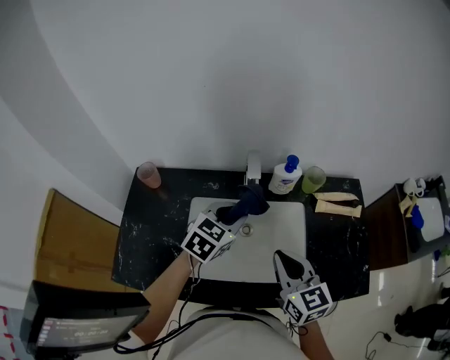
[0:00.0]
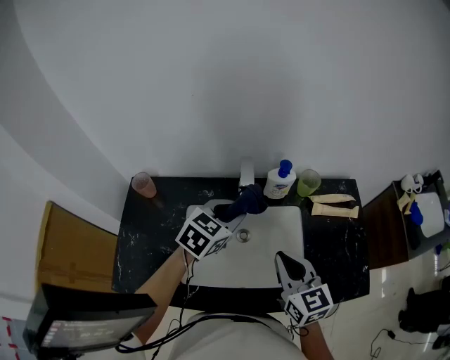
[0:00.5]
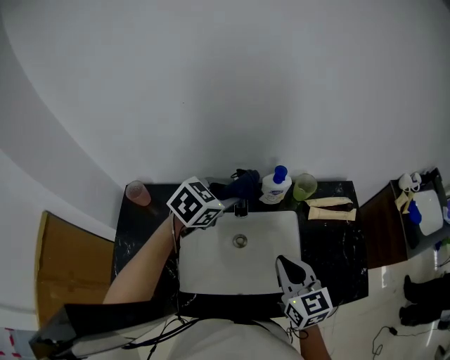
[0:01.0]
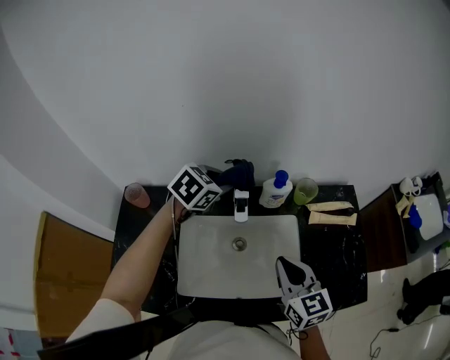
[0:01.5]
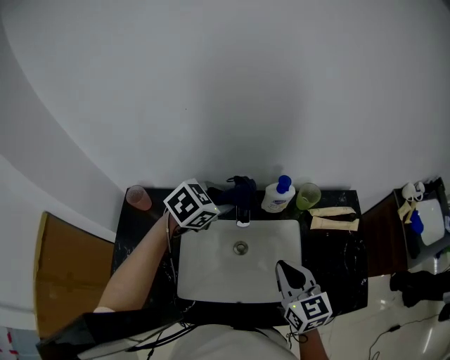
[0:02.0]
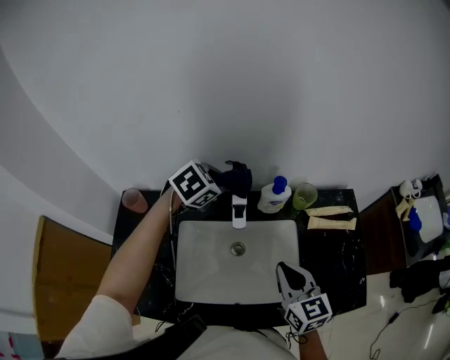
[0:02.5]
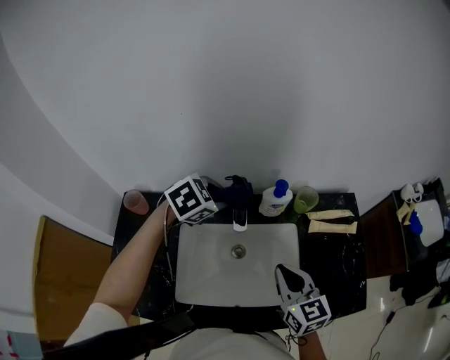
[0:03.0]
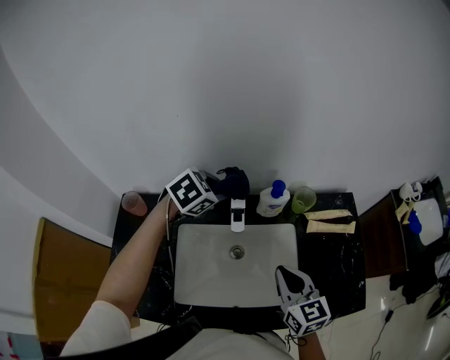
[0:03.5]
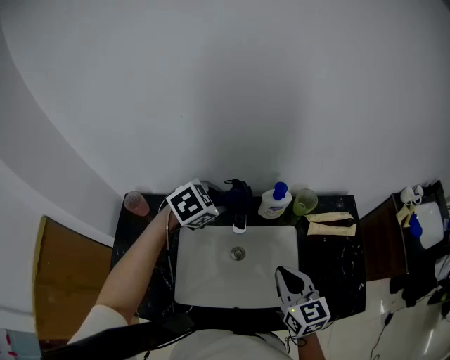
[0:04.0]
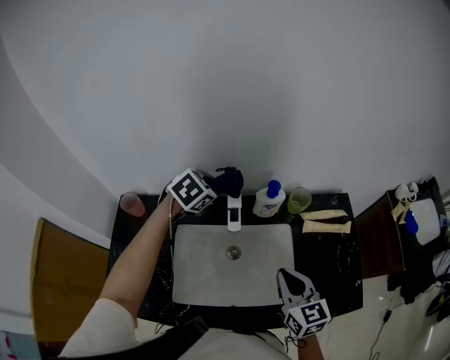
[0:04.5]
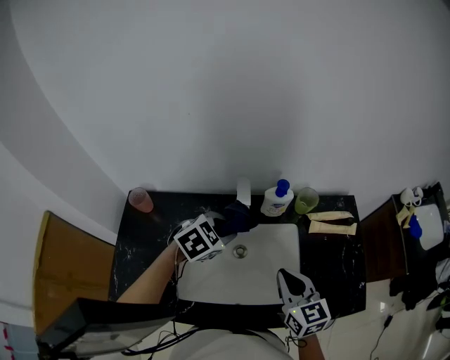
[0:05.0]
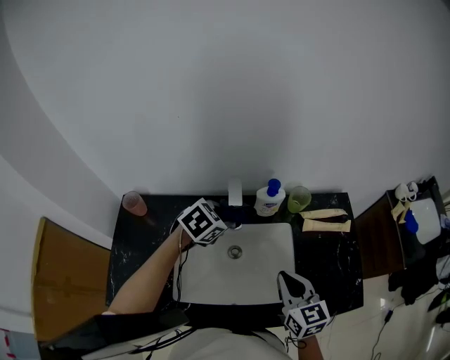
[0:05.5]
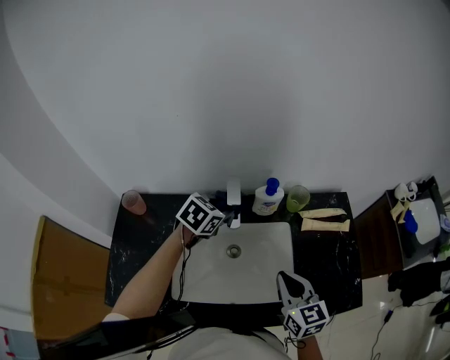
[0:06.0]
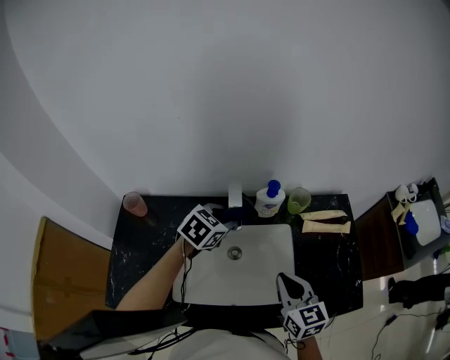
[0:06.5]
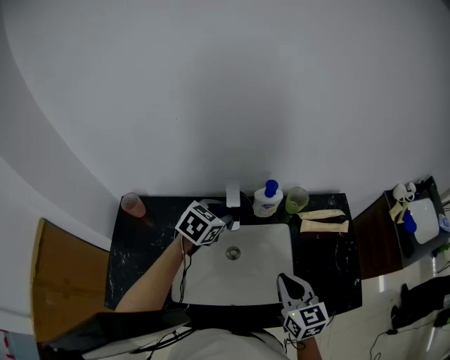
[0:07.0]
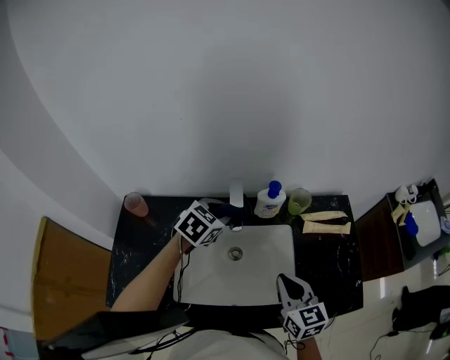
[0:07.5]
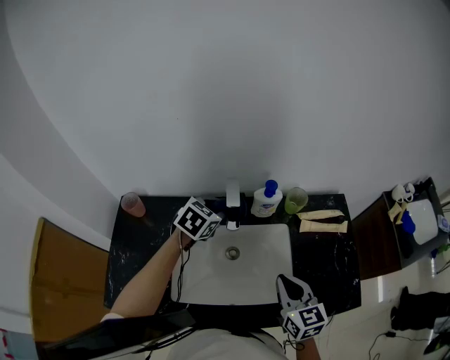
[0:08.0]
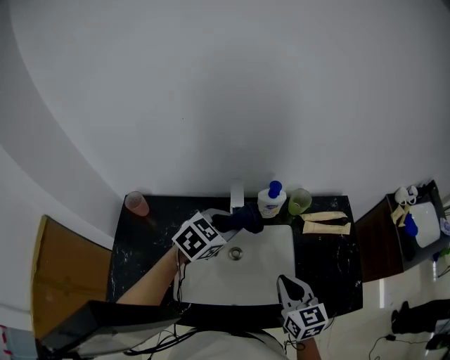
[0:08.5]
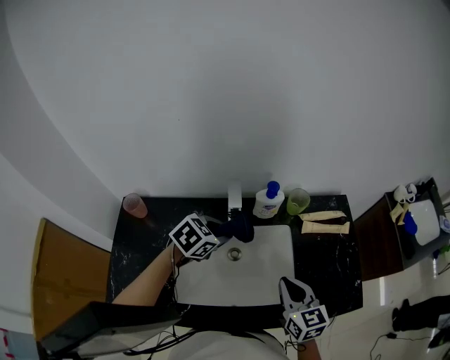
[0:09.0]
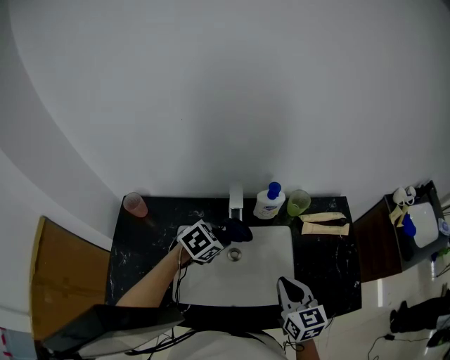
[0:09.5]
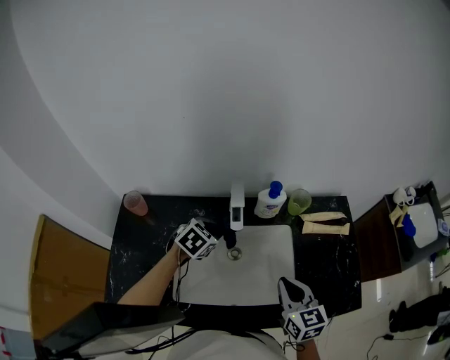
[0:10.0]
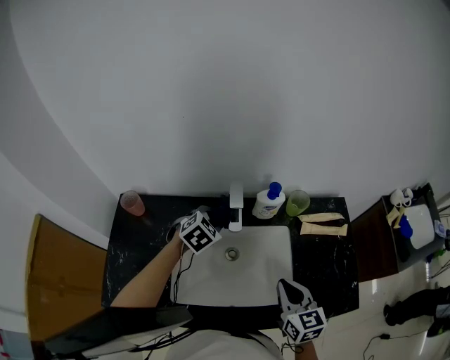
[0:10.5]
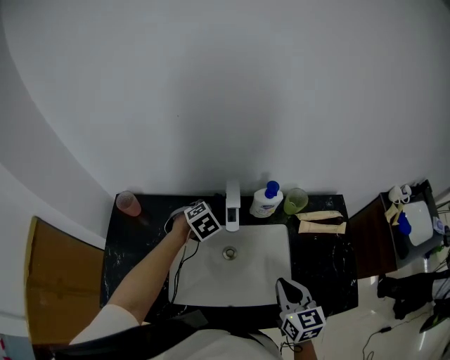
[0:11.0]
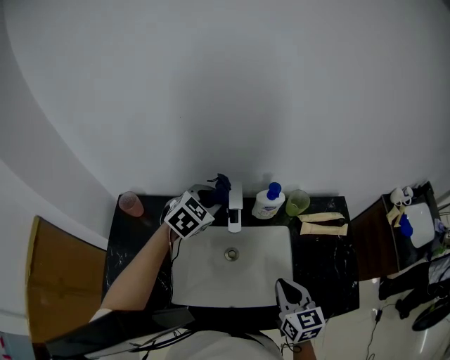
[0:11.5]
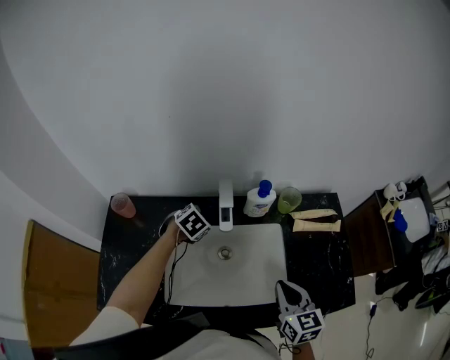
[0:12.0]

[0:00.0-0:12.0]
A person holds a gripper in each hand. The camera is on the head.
0:00.0 to 0:02.0: The left gripper is displaced forward by some 10 cm, and swivels roughly 20 degrees. Meanwhile the right gripper ends up roughly 5 cm from where it was.
0:04.0 to 0:06.0: The left gripper goes forward and backward, approximately 10 cm each way, reversing 2 times.
0:06.0 to 0:08.0: The grippers move only a little.
0:08.0 to 0:10.0: The left gripper travels downward and backward by some 10 cm.
0:10.0 to 0:12.0: The left gripper moves forward, approximately 5 cm, and goes upward and returns, about 10 cm each way.

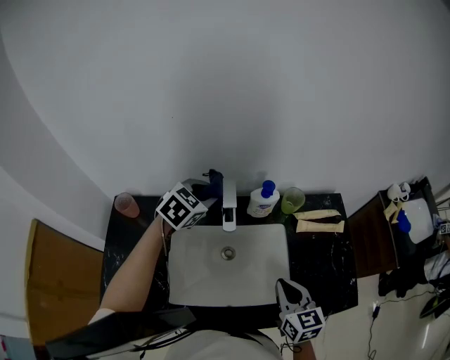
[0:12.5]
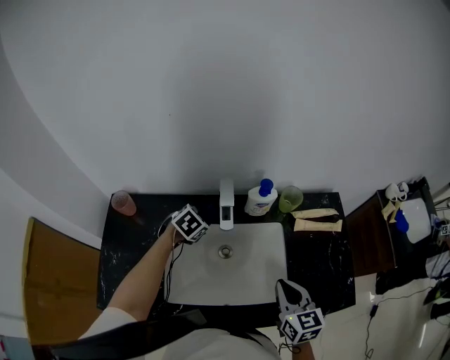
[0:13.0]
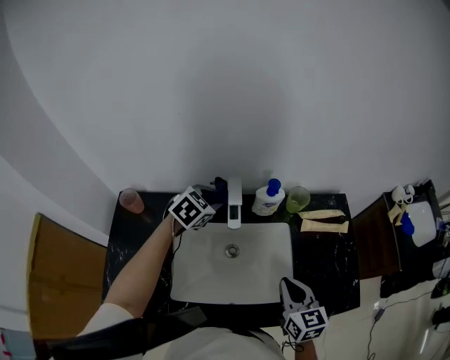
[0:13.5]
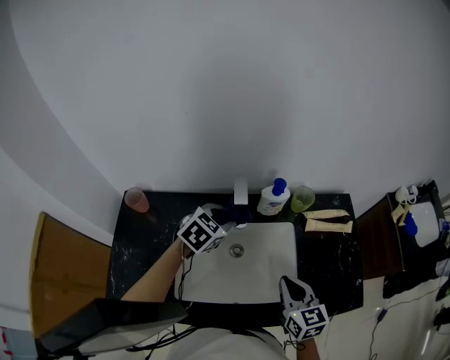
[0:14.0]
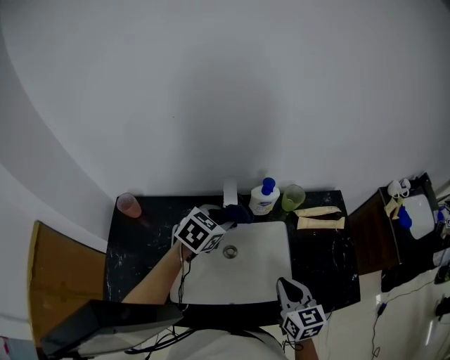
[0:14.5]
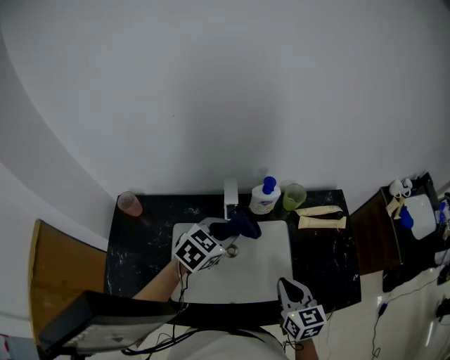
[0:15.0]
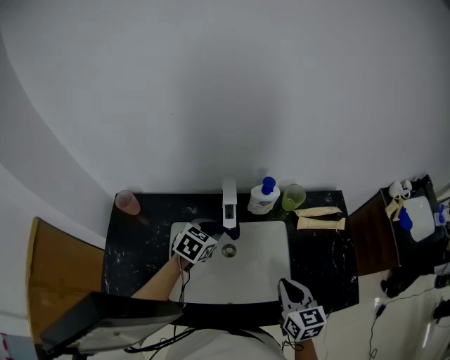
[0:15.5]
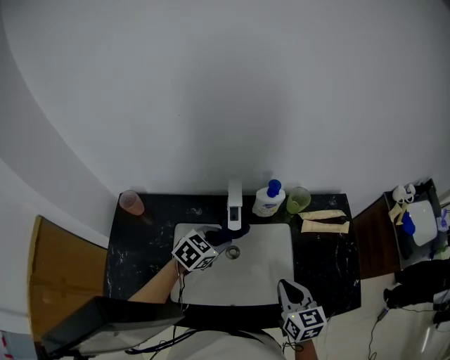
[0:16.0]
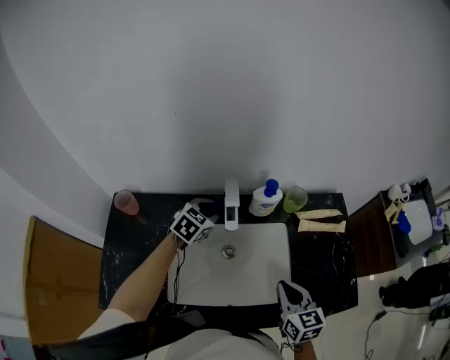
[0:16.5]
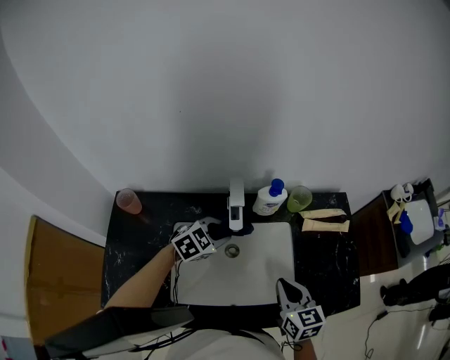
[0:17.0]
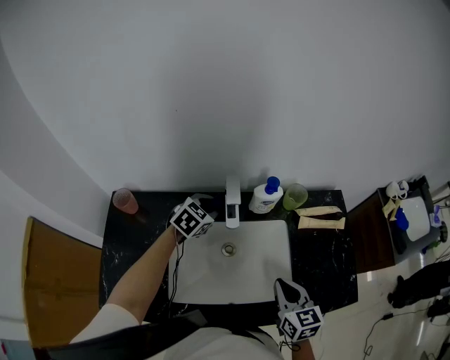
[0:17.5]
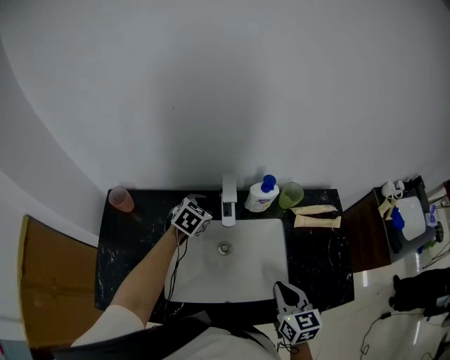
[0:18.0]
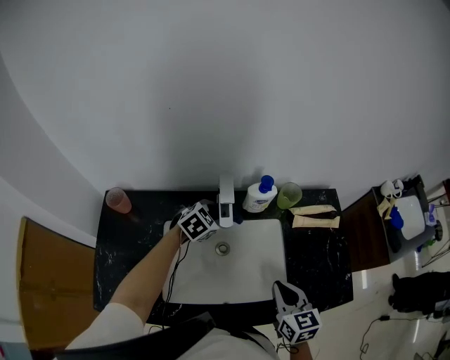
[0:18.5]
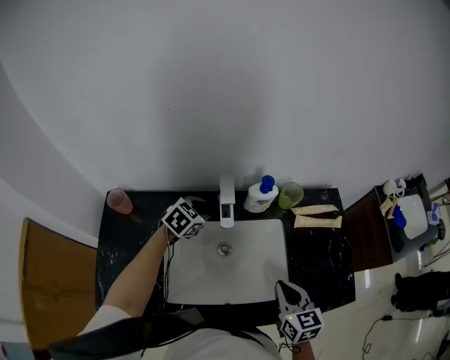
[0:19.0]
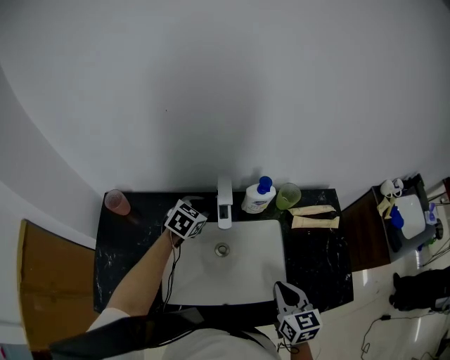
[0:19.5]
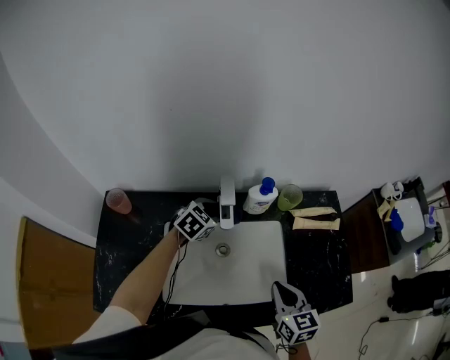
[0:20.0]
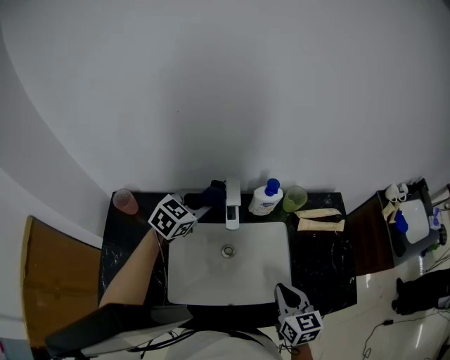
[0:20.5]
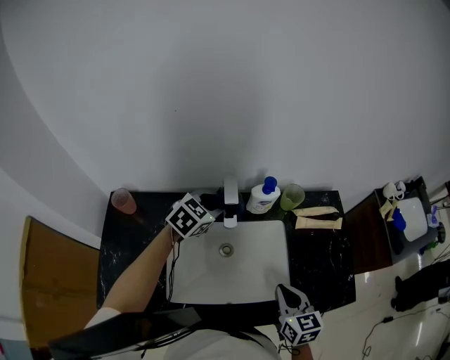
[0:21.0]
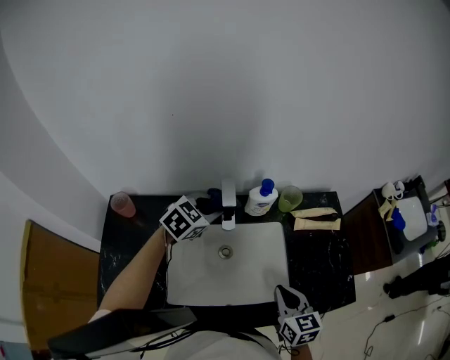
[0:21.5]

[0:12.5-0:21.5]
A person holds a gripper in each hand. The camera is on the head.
0:12.5 to 0:14.5: The left gripper is displaced backward and to the right by about 10 cm, and moves roughly 15 cm downward and comes back.
0:14.5 to 0:17.0: The left gripper swings forward and backward, approximately 10 cm each way, with 2 reversals.
0:17.0 to 0:19.5: The left gripper travels forward and to the left by some 10 cm, and turns by about 20 degrees.
0:19.5 to 0:21.5: The left gripper heads upward, covering about 10 cm.

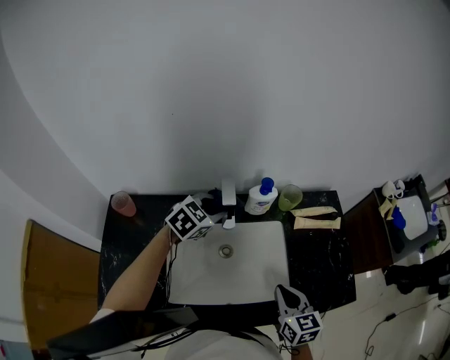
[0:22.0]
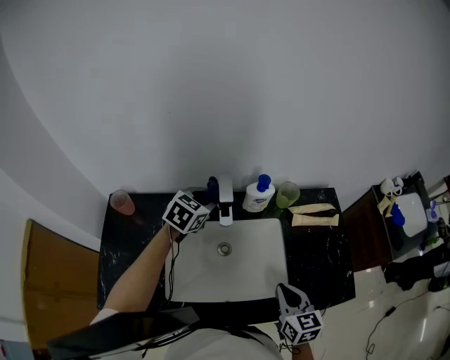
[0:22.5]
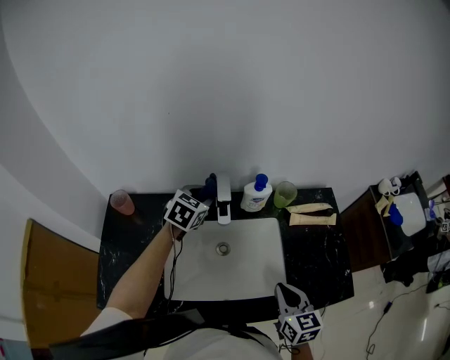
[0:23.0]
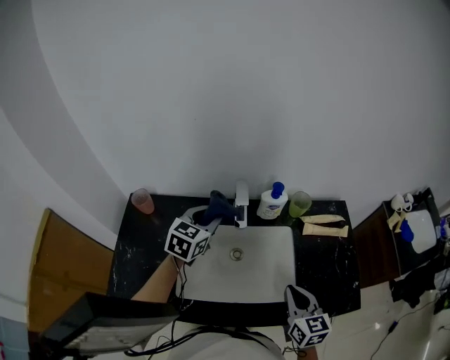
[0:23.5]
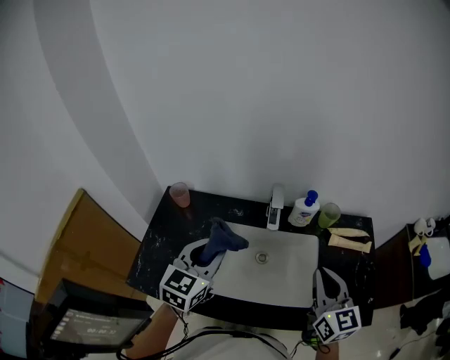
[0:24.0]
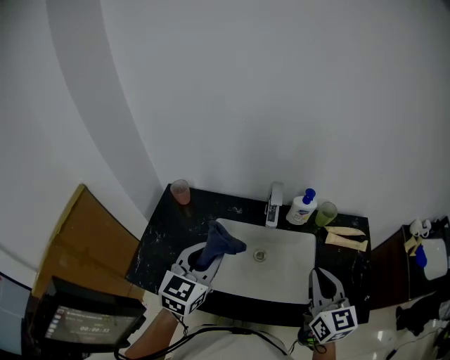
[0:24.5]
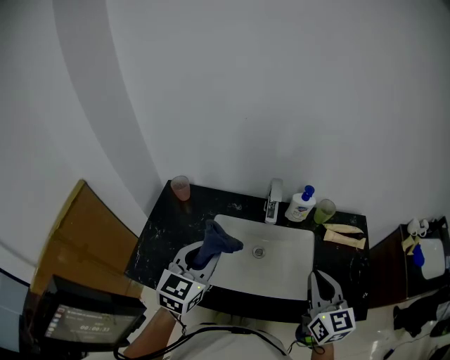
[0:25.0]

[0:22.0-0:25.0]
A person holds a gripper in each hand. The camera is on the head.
0:22.0 to 0:23.5: The left gripper moves to the left, some 5 cm, and rotates about 30 degrees.
0:23.5 to 0:25.0: The left gripper is displaced backward by approximately 20 cm. The right gripper heads upward, covering some 10 cm.

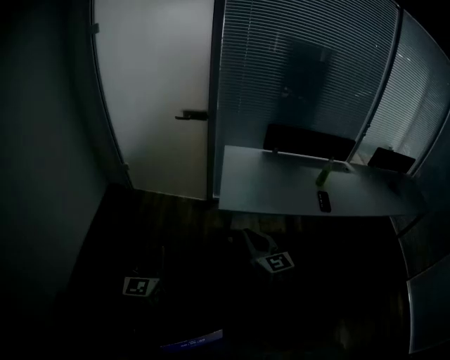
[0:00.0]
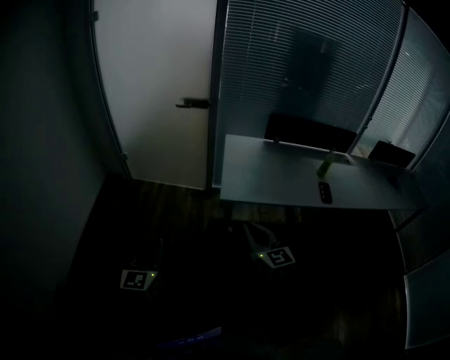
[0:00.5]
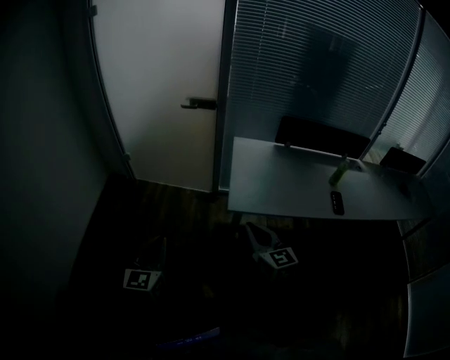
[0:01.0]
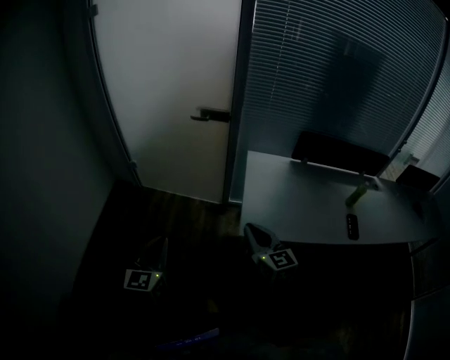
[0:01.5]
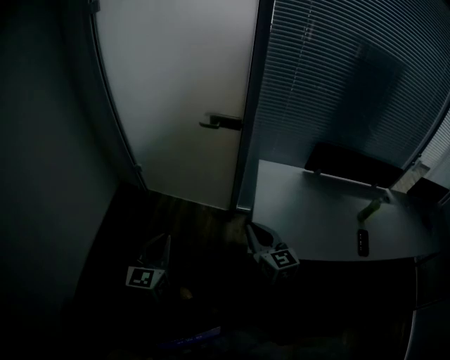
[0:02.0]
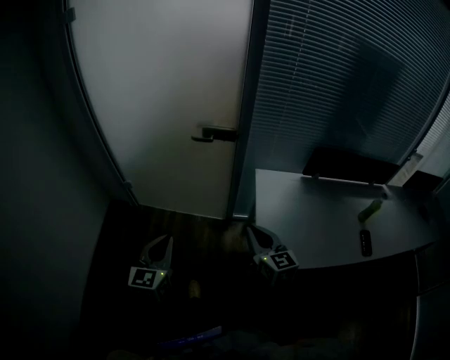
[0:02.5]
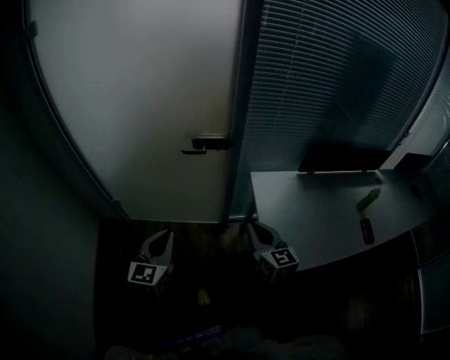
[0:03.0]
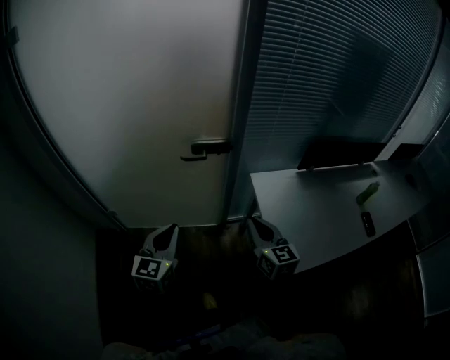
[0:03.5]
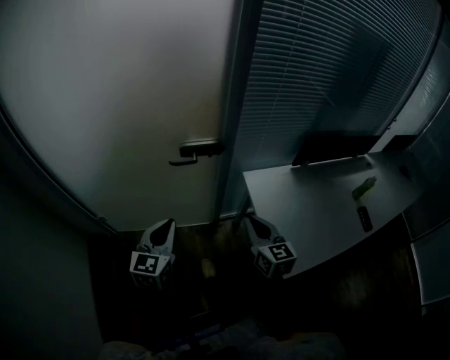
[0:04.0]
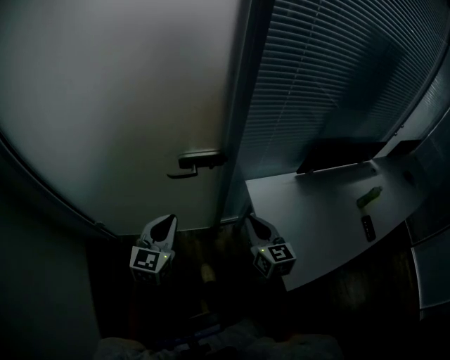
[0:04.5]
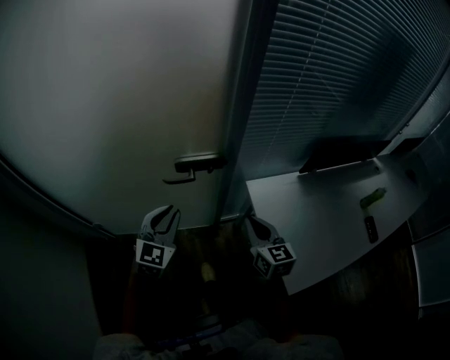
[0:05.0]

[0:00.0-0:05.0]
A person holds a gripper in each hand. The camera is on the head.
0:00.0 to 0:02.5: The two grippers travel together, forward, some 40 cm.
0:02.5 to 0:05.0: Both grippers travel together forward, roughly 30 cm. The left gripper changes its angle by approximately 30 degrees. The right gripper changes its angle by some 20 degrees.
